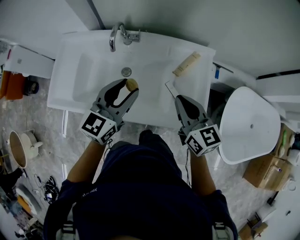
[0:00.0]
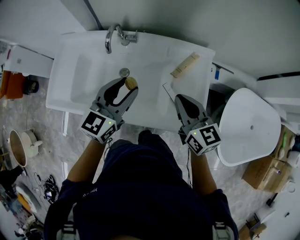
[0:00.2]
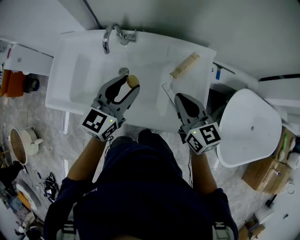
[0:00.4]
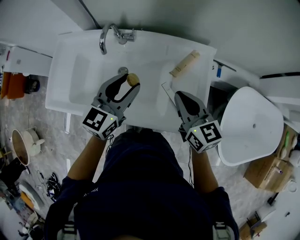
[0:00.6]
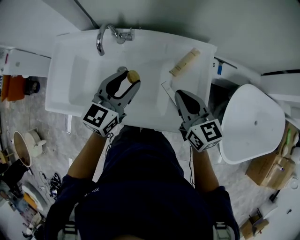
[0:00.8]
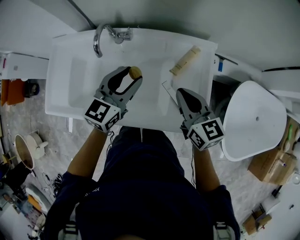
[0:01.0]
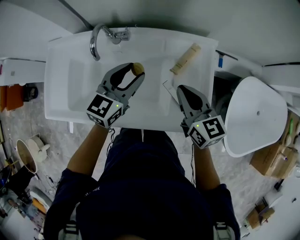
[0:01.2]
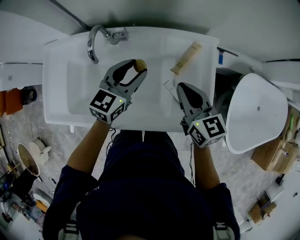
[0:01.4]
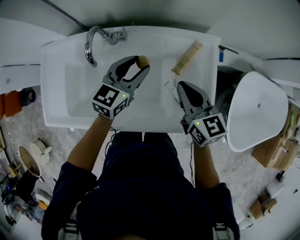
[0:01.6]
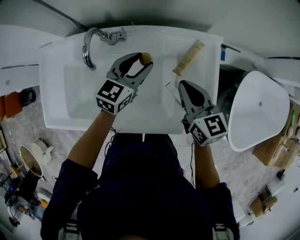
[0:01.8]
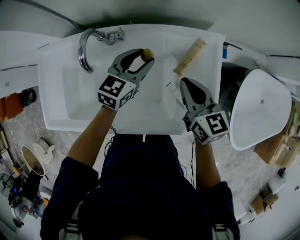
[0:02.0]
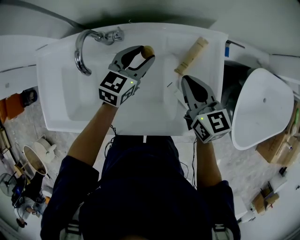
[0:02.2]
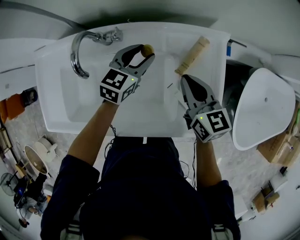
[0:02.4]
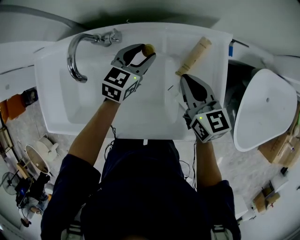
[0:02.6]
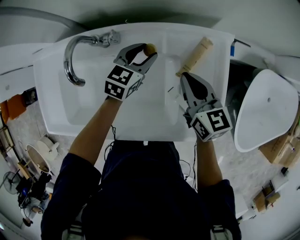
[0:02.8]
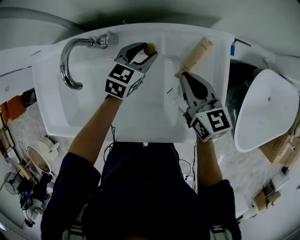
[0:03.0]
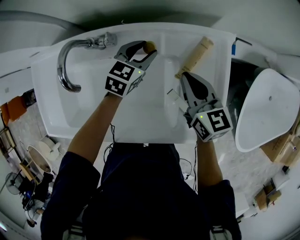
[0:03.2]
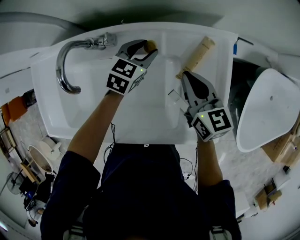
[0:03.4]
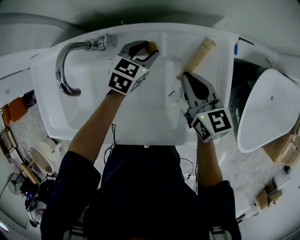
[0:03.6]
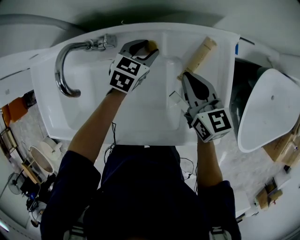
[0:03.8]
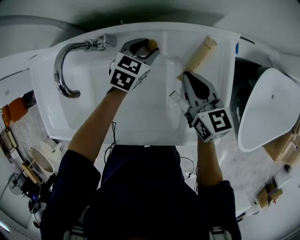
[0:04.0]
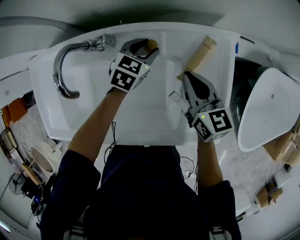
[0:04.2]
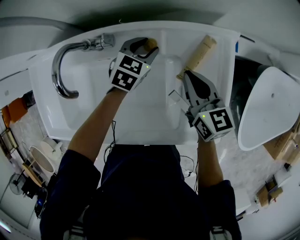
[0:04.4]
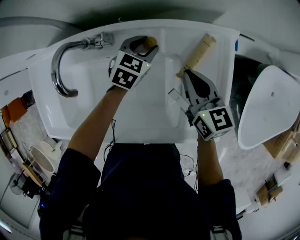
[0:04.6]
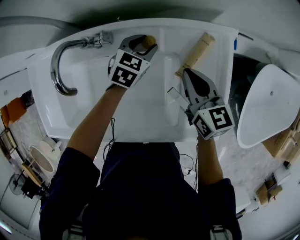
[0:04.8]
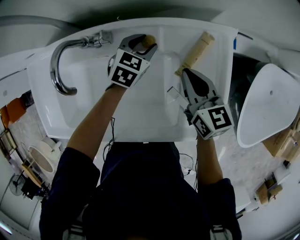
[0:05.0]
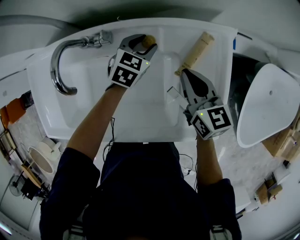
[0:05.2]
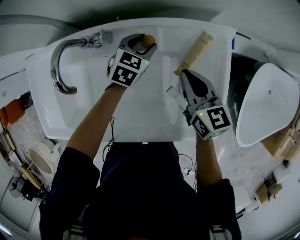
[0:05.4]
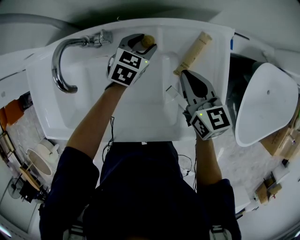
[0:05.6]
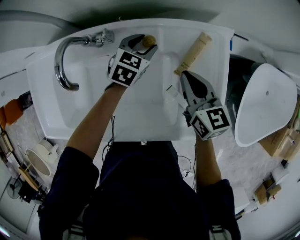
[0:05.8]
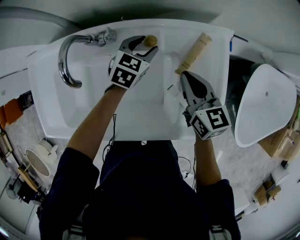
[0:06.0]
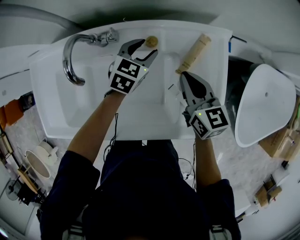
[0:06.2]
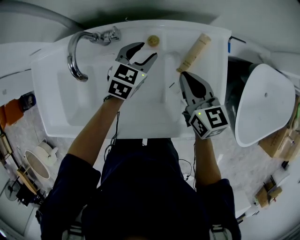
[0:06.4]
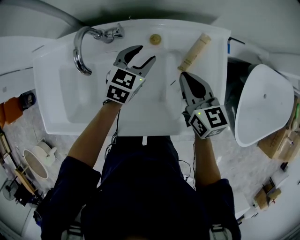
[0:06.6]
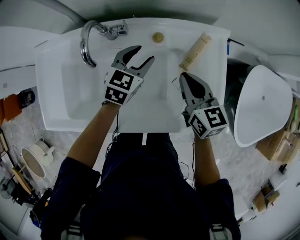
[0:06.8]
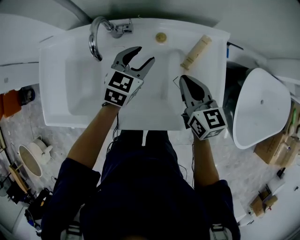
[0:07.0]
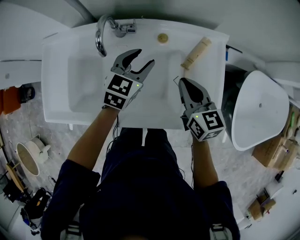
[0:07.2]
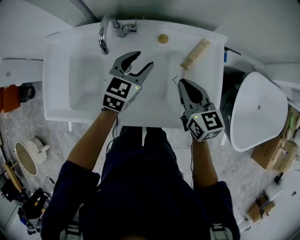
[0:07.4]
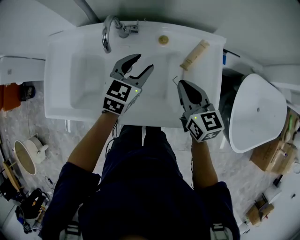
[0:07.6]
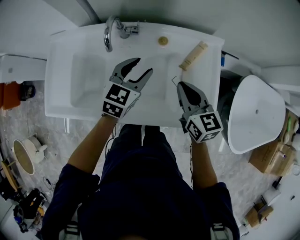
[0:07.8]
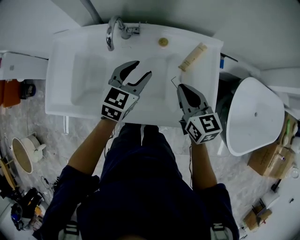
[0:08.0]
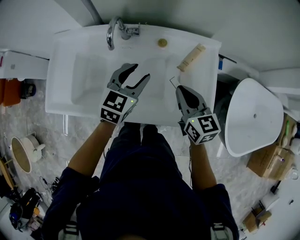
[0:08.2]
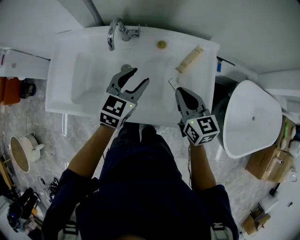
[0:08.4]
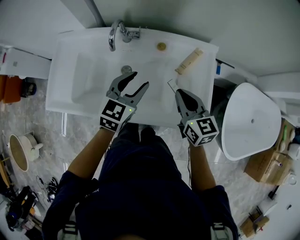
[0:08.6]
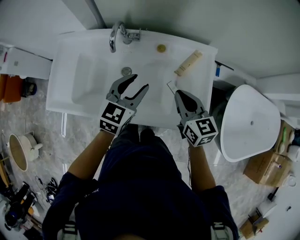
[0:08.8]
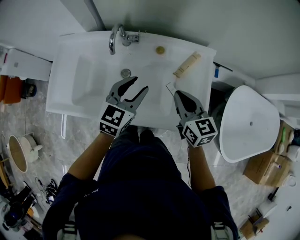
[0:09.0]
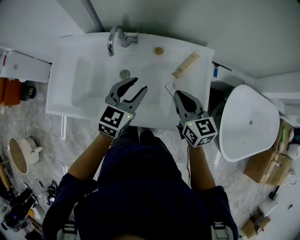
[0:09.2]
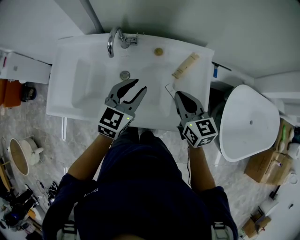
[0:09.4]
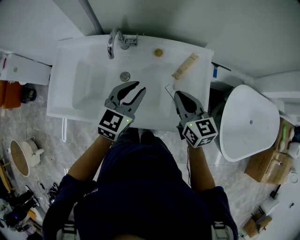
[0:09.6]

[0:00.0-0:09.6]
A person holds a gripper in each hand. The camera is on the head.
0:00.0 to 0:01.6: The left gripper shifts roughly 20 cm forward and downward; the right gripper travels forward and downward by some 10 cm.
0:01.6 to 0:03.2: The right gripper heads downward and forward, covering about 10 cm, while the left gripper travels downward and forward by approximately 15 cm.
0:03.2 to 0:04.8: There are only small adjustments of the grippers.
0:04.8 to 0:06.4: The left gripper shifts approximately 5 cm upward.
0:06.4 to 0:08.0: The left gripper is displaced backward and upward by about 20 cm. Meanwhile the right gripper is displaced backward and upward by about 10 cm.
0:08.0 to 0:09.6: The left gripper travels backward by some 5 cm, and closes.

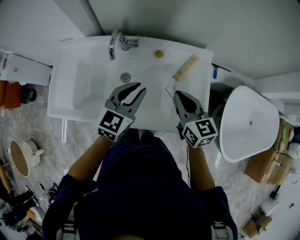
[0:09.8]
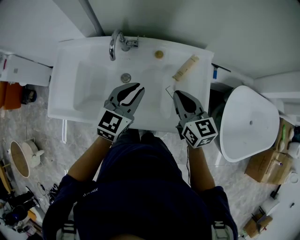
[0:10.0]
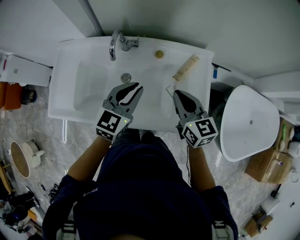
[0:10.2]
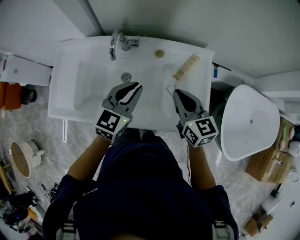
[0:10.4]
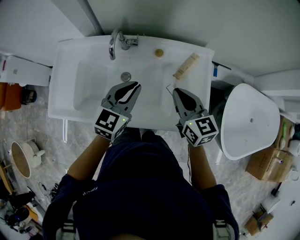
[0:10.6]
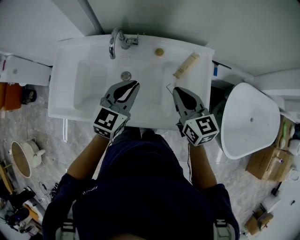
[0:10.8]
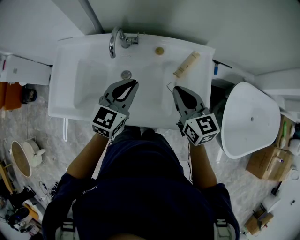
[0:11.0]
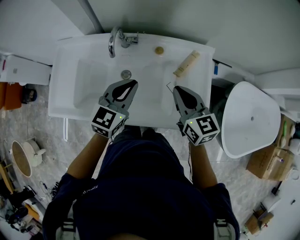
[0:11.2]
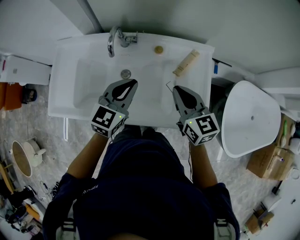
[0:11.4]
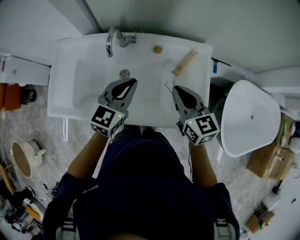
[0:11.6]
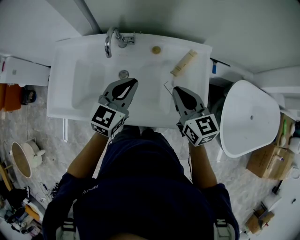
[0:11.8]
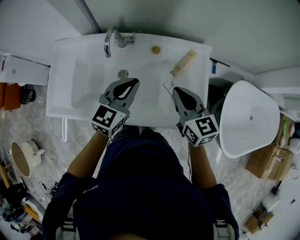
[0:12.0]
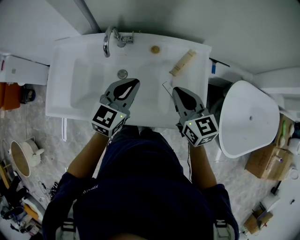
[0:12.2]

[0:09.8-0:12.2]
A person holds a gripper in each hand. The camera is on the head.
0:09.8 to 0:12.2: The grippers stay close to where they were, moving slightly.

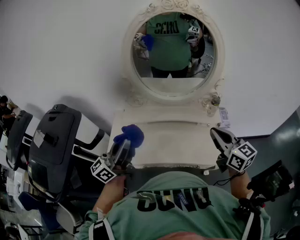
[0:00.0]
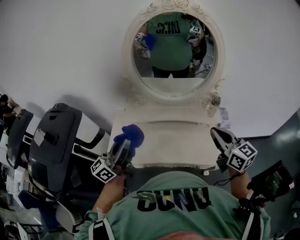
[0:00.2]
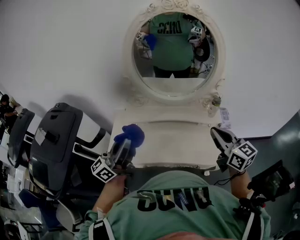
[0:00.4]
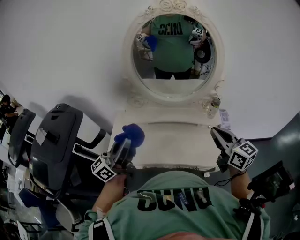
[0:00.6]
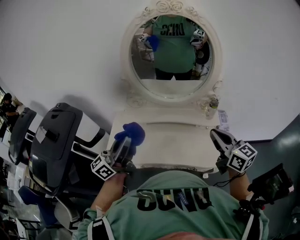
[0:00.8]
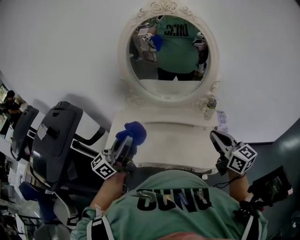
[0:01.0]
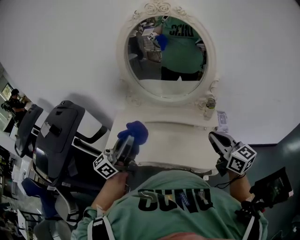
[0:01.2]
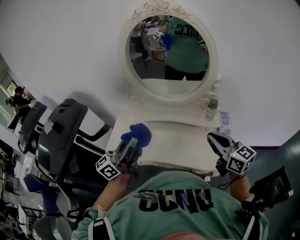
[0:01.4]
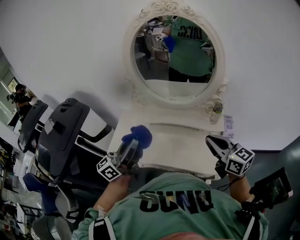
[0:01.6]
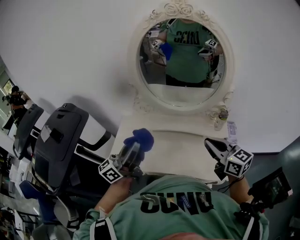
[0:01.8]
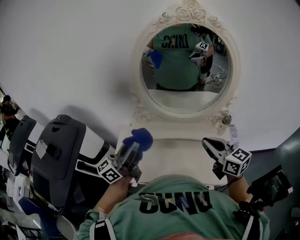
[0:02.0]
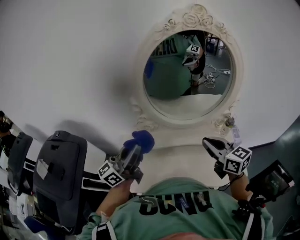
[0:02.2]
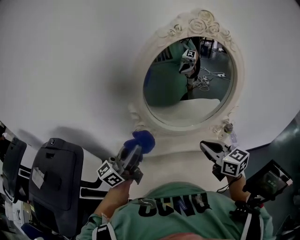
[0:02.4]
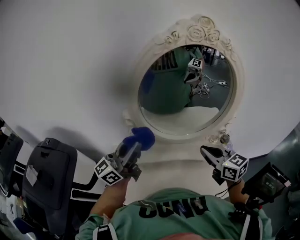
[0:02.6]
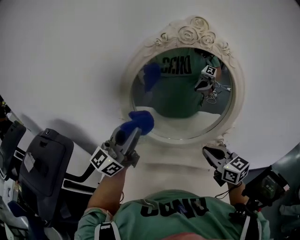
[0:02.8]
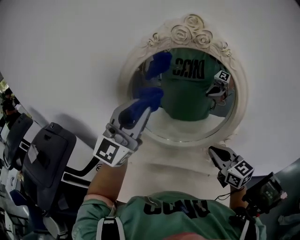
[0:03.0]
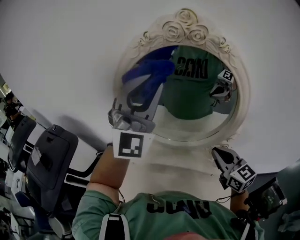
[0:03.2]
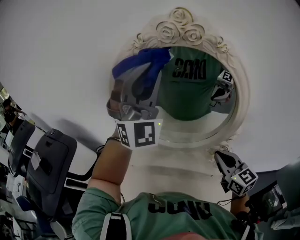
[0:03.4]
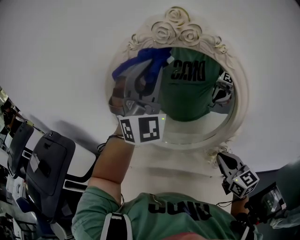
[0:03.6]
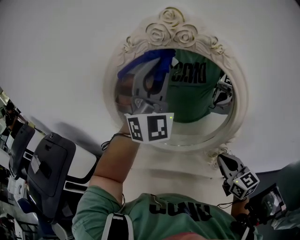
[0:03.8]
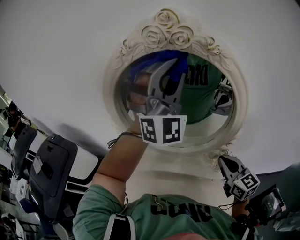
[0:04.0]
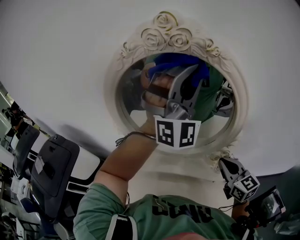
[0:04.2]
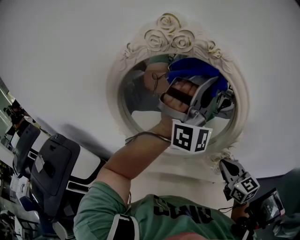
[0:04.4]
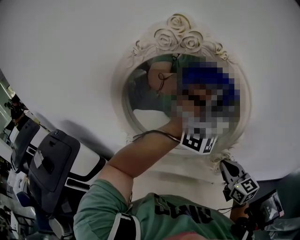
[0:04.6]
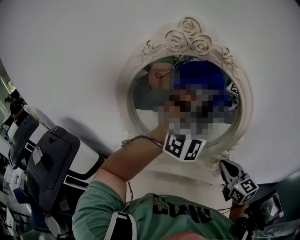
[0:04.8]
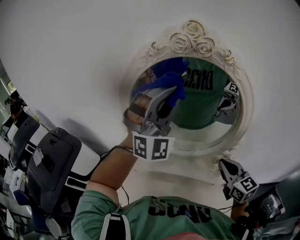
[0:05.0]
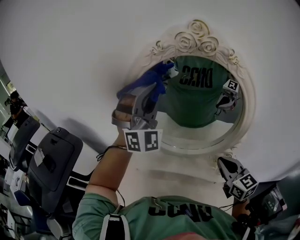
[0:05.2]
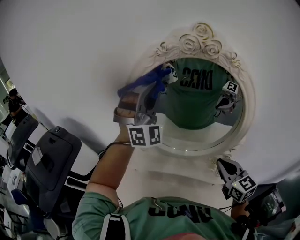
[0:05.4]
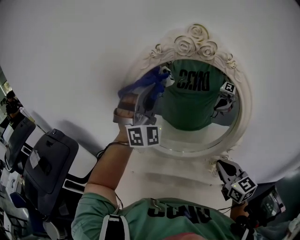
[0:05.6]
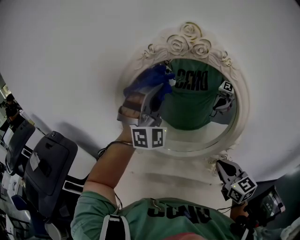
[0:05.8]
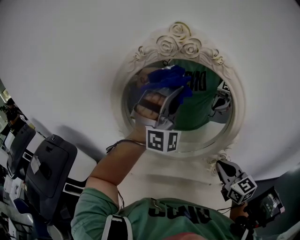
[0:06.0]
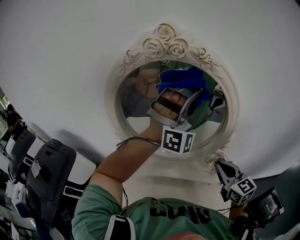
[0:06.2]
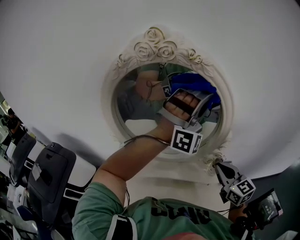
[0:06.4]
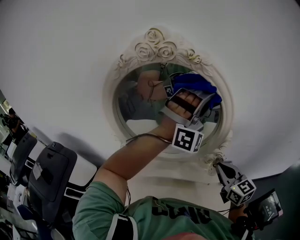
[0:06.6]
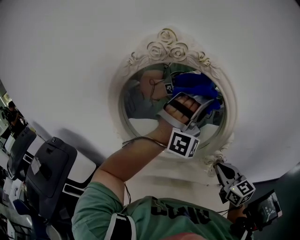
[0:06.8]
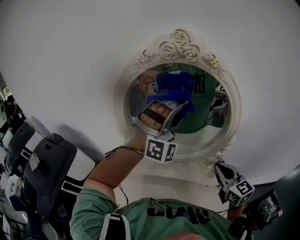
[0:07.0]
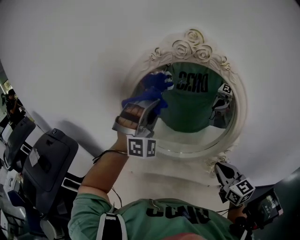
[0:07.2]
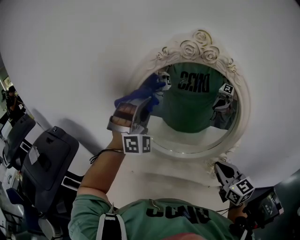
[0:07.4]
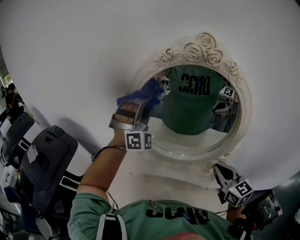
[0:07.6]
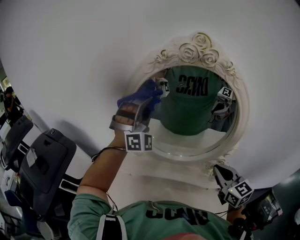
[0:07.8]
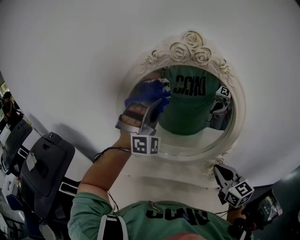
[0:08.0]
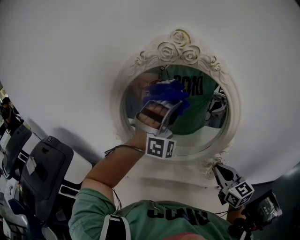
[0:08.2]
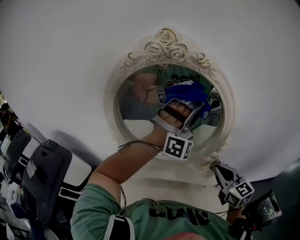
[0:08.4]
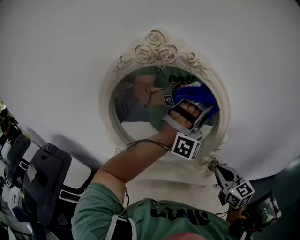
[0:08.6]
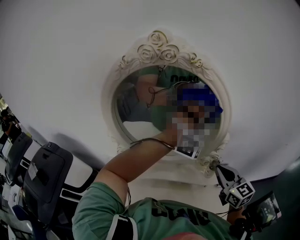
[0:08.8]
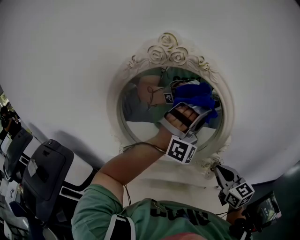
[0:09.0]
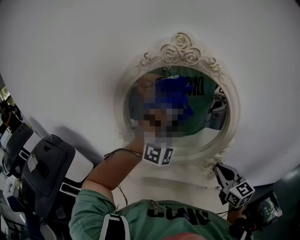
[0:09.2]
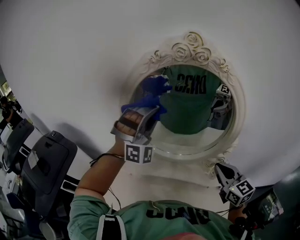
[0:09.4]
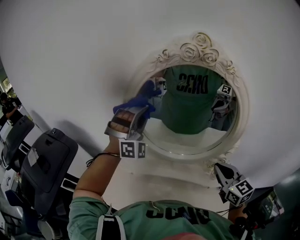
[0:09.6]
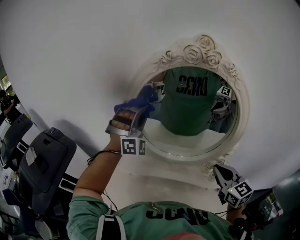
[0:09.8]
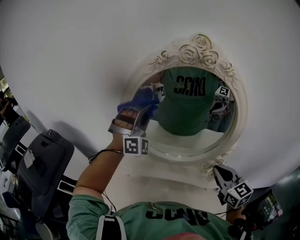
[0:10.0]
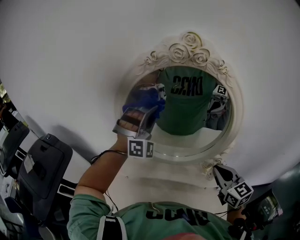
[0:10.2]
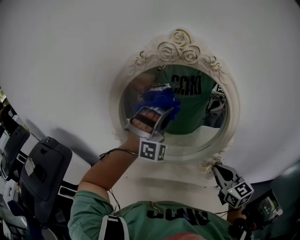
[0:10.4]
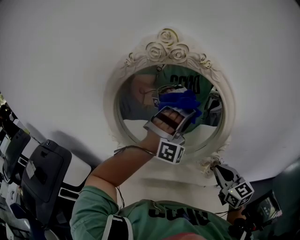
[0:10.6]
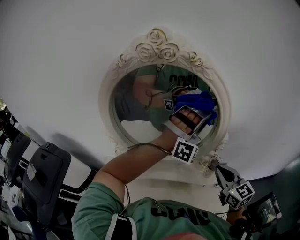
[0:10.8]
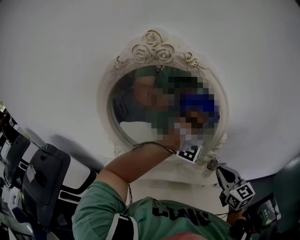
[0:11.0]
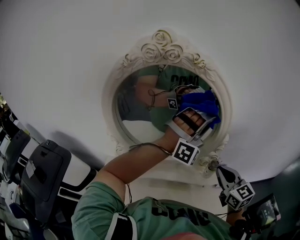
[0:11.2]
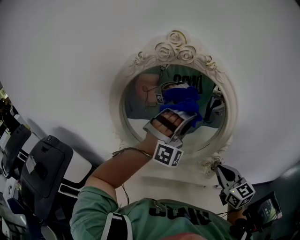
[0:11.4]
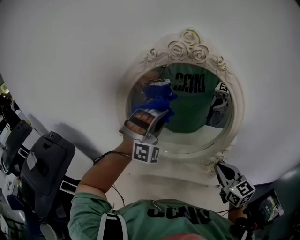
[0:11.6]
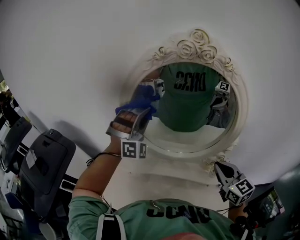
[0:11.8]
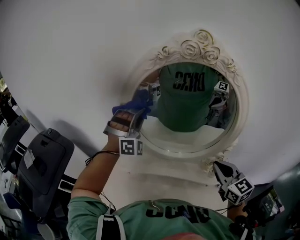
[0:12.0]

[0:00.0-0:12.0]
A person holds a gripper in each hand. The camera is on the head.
0:00.0 to 0:01.6: The left gripper is displaced to the right by some 10 cm.
0:01.6 to 0:03.0: The left gripper travels forward and upward by roughly 35 cm, and rolls clockwise, seen from behind, by approximately 60 degrees; the right gripper shifts about 20 cm forward.
0:03.0 to 0:04.4: The left gripper goes roughly 25 cm to the right, and rolls clockwise, seen from behind, by approximately 60 degrees. Meanwhile the right gripper is displaced to the right by about 5 cm.
0:04.4 to 0:06.0: The left gripper is displaced to the left by some 10 cm.
0:06.0 to 0:07.6: The left gripper is displaced to the left by some 15 cm.
0:07.6 to 0:09.0: The right gripper travels to the right by roughly 5 cm. The left gripper goes about 30 cm to the right, and swivels roughly 30 degrees.
0:09.0 to 0:10.4: The left gripper is displaced to the left and forward by roughly 15 cm.
0:10.4 to 0:12.0: The left gripper goes some 15 cm to the left.
